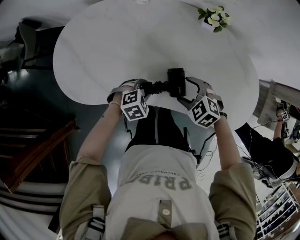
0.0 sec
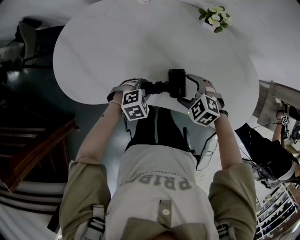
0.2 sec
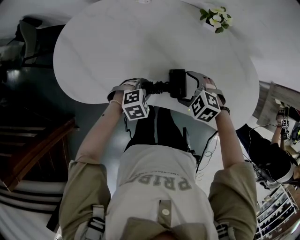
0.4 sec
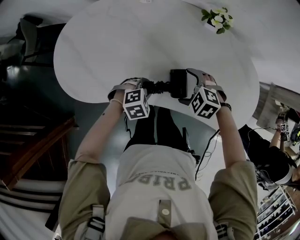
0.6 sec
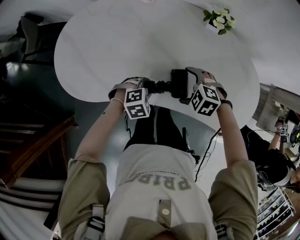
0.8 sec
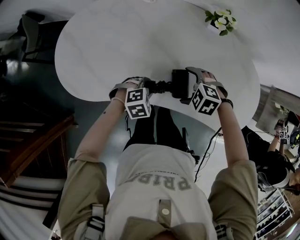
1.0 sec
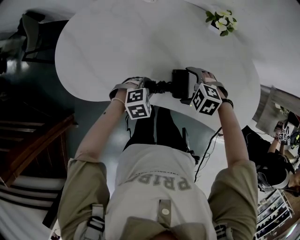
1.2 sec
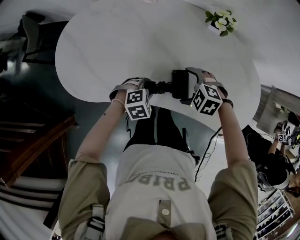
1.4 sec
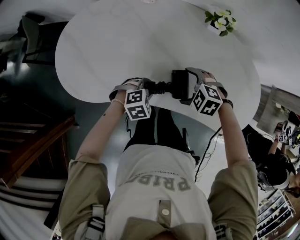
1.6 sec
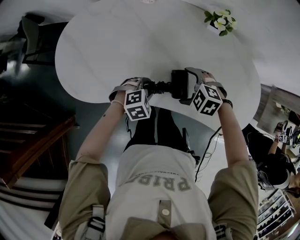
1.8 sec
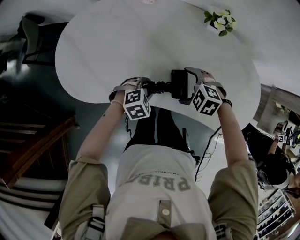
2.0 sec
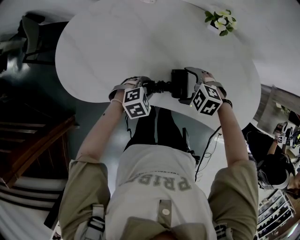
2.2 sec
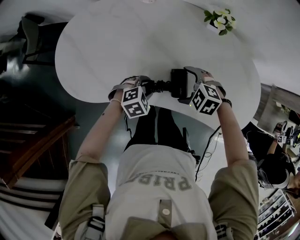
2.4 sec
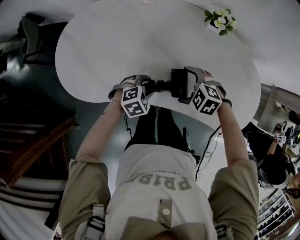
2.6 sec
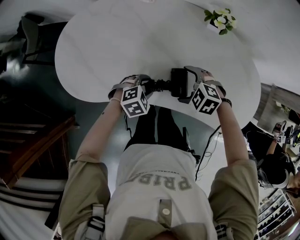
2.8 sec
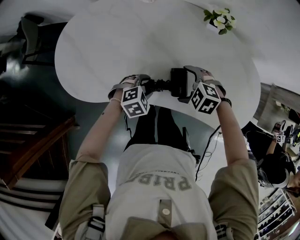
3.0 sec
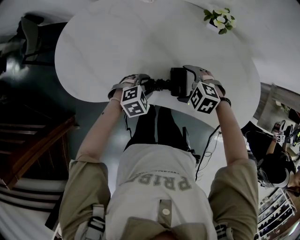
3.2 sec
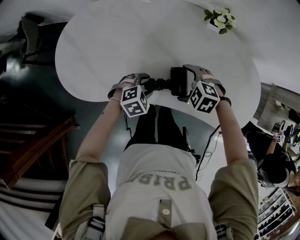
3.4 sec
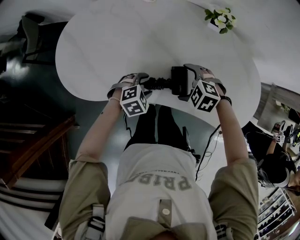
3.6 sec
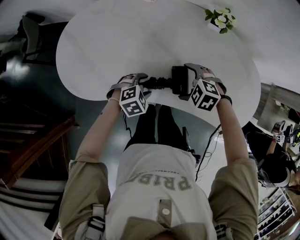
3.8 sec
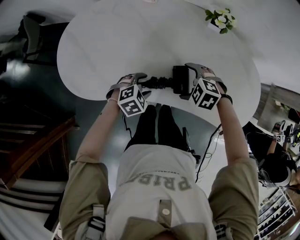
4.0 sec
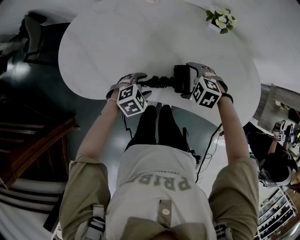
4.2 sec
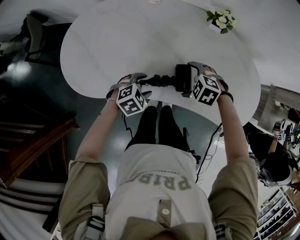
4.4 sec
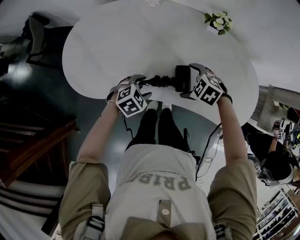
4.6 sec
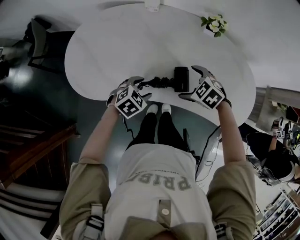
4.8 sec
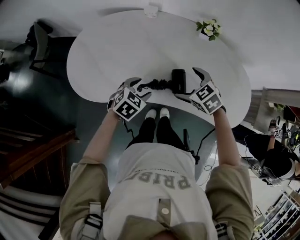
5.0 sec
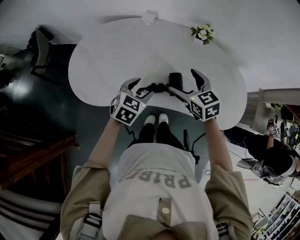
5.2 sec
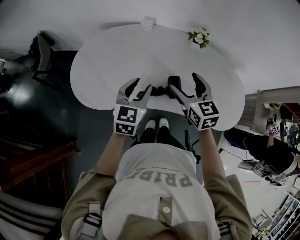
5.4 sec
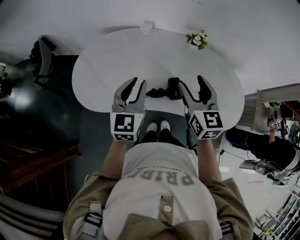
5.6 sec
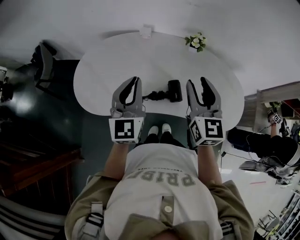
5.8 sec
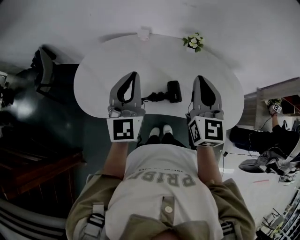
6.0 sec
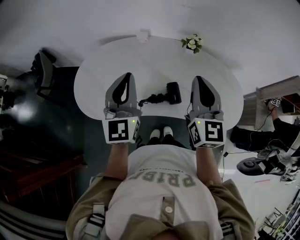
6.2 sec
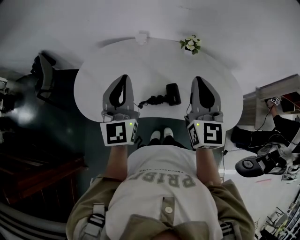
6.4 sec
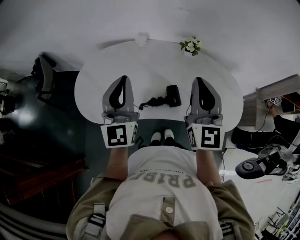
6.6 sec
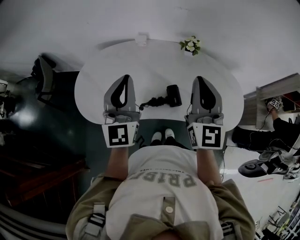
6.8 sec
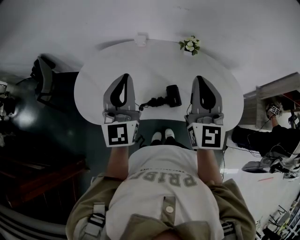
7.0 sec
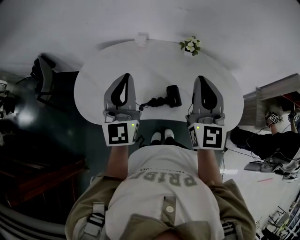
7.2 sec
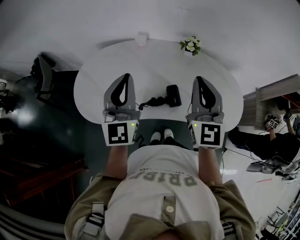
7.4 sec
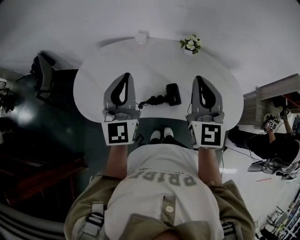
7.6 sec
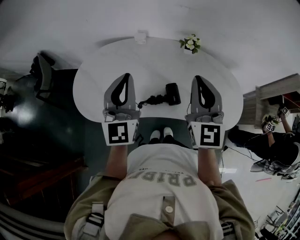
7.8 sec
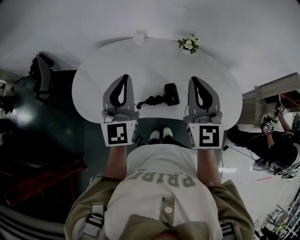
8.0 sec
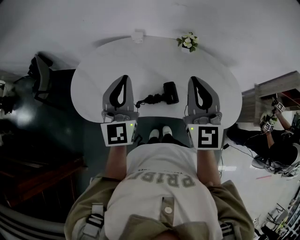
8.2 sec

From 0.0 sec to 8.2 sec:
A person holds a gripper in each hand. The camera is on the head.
From 0.0 sec to 1.6 sec: The right gripper opens its fingers.
From 1.6 sec to 3.2 sec: The grippers make only small movements.
From 3.2 sec to 5.0 sec: The two grippers go about 10 cm upward. The right gripper rotates roughly 30 degrees; the left gripper turns by roughly 30 degrees.
From 5.0 sec to 6.6 sec: Both grippers move upward, approximately 30 cm. The left gripper angles its fingers upward, by about 60 degrees, and closes up. The right gripper tips its fingers upward by roughly 60 degrees, and closes up.
From 6.6 sec to 8.2 sec: The grippers stay close to where they were, moving slightly.

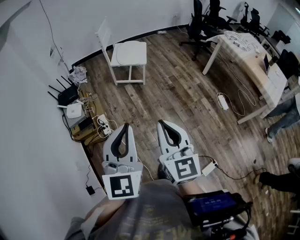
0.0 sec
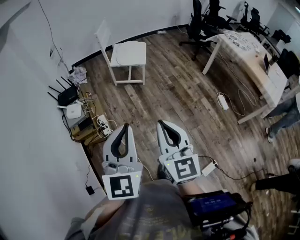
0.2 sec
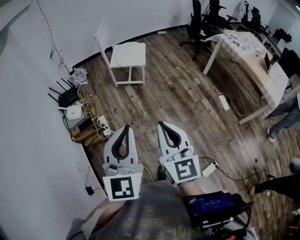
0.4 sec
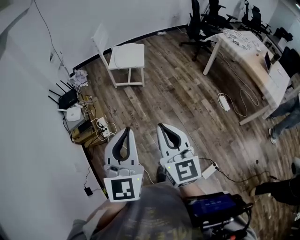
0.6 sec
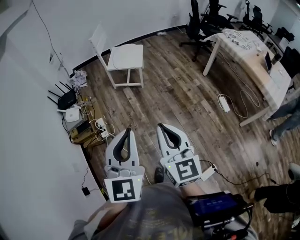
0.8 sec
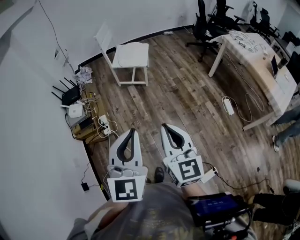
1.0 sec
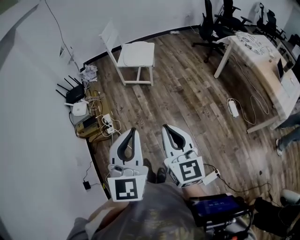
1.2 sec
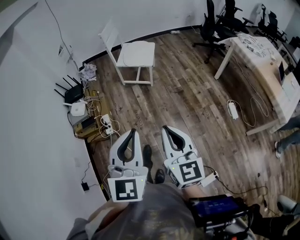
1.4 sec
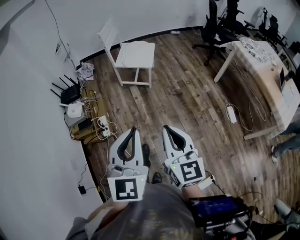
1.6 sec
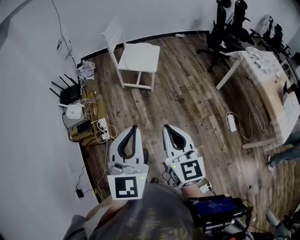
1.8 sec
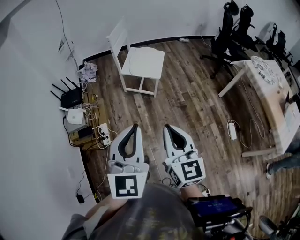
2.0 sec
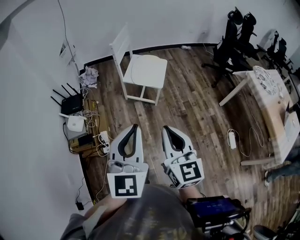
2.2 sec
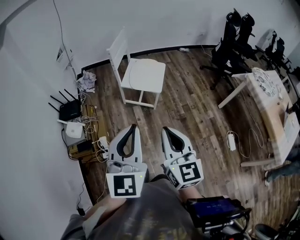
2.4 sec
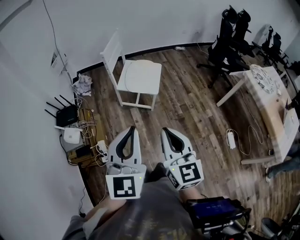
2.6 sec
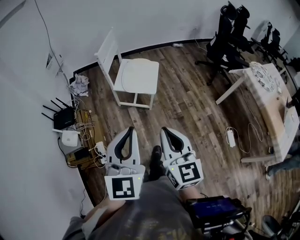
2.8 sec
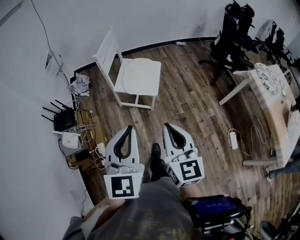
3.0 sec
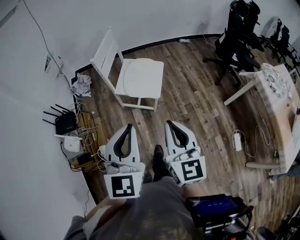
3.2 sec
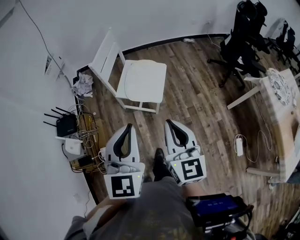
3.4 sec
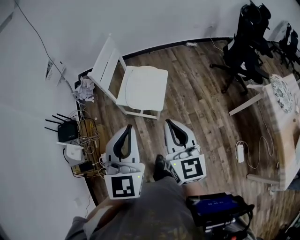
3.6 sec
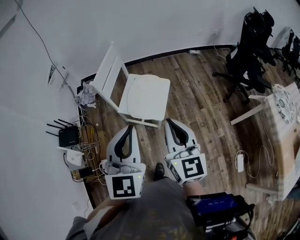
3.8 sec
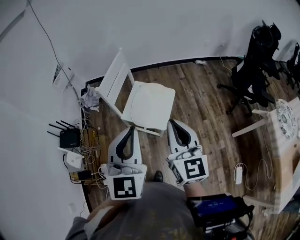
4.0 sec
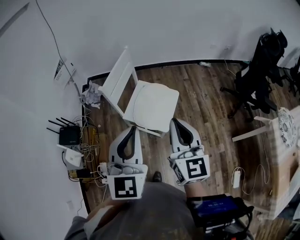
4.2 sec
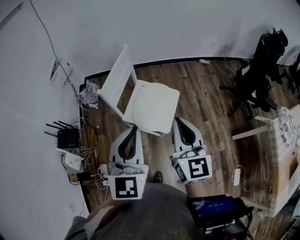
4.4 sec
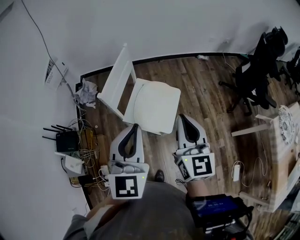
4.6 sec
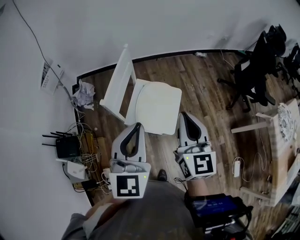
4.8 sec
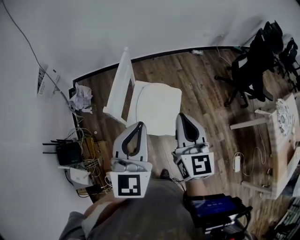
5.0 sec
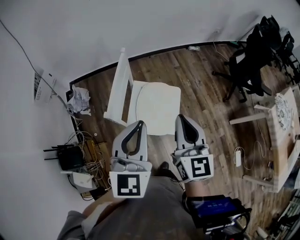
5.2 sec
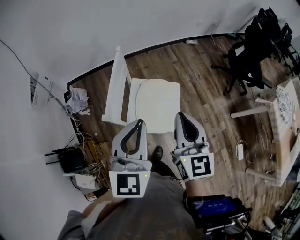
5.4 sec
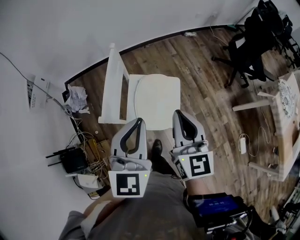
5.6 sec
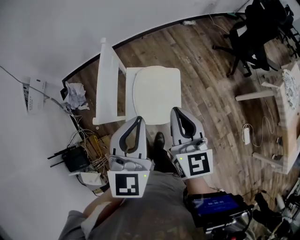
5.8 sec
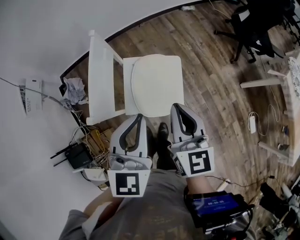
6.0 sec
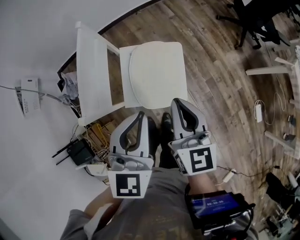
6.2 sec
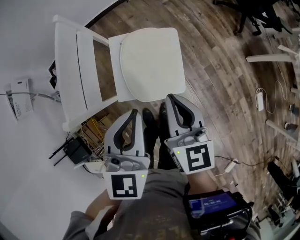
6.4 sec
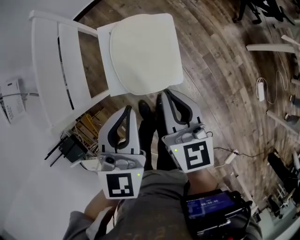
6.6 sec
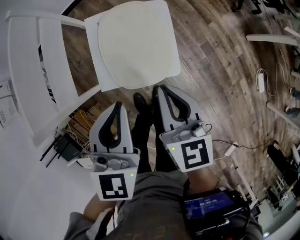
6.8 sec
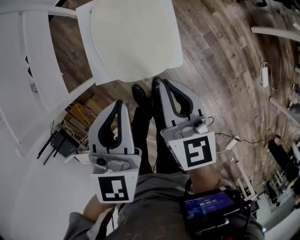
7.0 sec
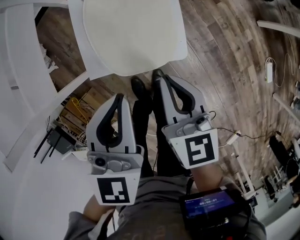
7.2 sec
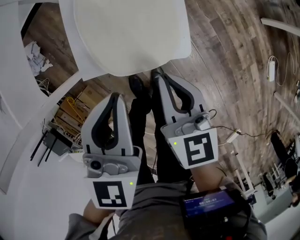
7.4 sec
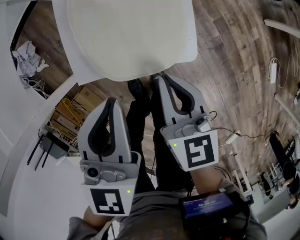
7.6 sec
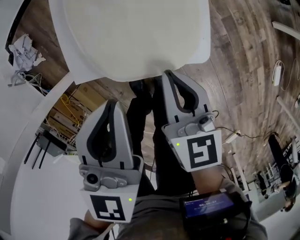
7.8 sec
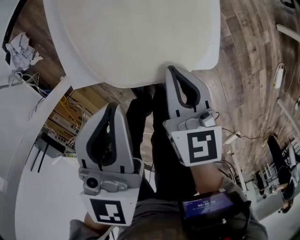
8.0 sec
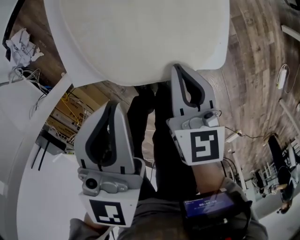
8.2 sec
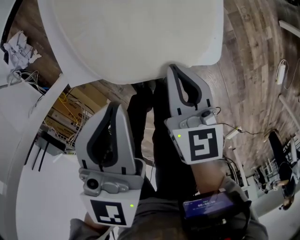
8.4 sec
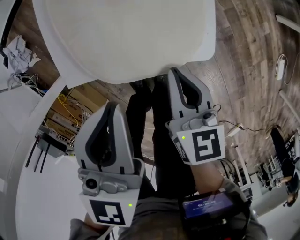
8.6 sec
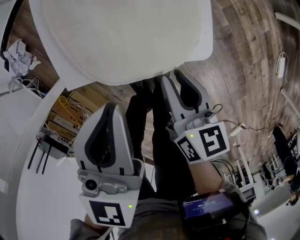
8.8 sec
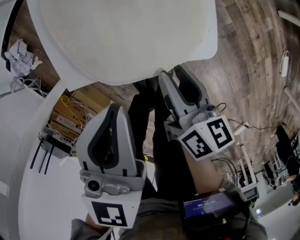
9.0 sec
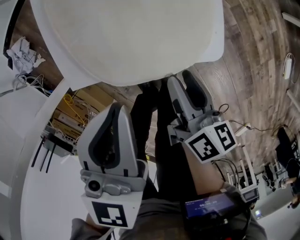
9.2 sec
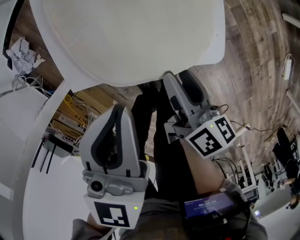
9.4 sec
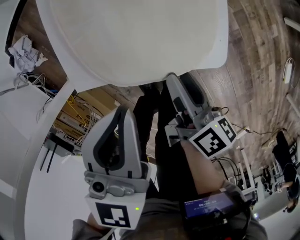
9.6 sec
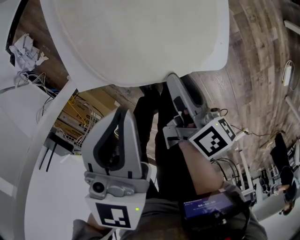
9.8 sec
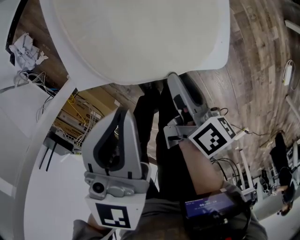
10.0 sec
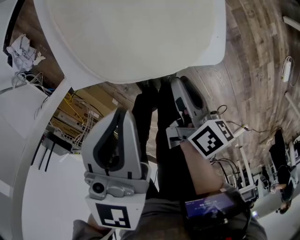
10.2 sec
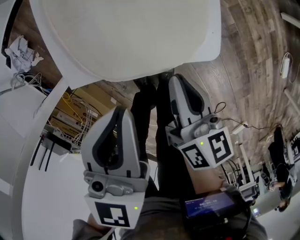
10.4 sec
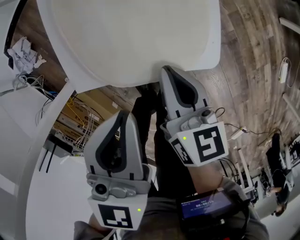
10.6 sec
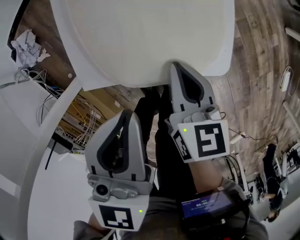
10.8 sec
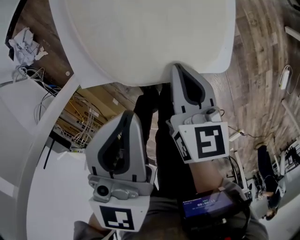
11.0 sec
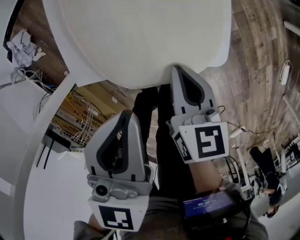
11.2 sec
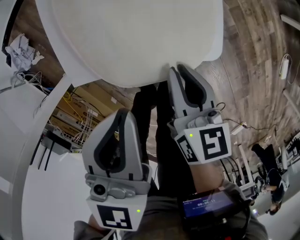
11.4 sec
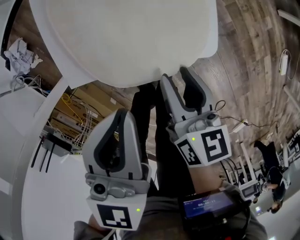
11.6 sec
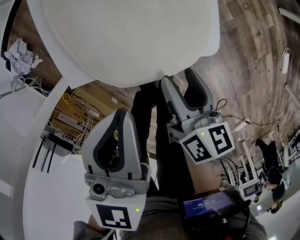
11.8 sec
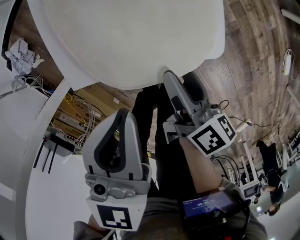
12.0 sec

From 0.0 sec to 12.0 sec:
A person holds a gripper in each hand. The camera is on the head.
From 0.0 sec to 1.6 sec: The grippers both shift to the right and forward by about 15 cm.
From 1.6 sec to 3.0 sec: The grippers both shift forward by approximately 35 cm.
From 3.0 sec to 4.4 sec: The grippers both shift forward by about 30 cm.
From 4.4 sec to 6.0 sec: The right gripper heads forward, downward and to the left, covering some 20 cm, and rotates roughly 20 degrees; the left gripper shifts roughly 20 cm forward and downward, and rotates approximately 30 degrees.
From 6.0 sec to 7.6 sec: Both grippers move downward, approximately 30 cm. The right gripper turns by about 20 degrees.
From 7.6 sec to 9.0 sec: The right gripper goes roughly 10 cm downward, rotates about 30 degrees, and opens; the left gripper ends up some 5 cm from where it was.
From 9.0 sec to 10.4 sec: The right gripper closes up.
From 10.4 sec to 12.0 sec: The right gripper opens up.

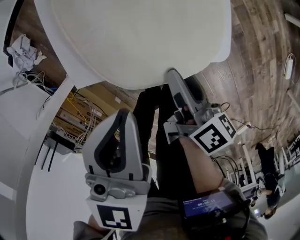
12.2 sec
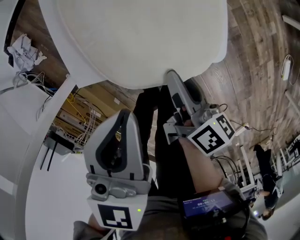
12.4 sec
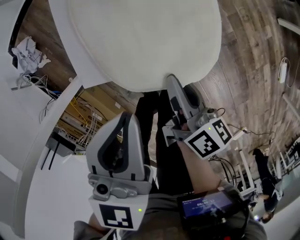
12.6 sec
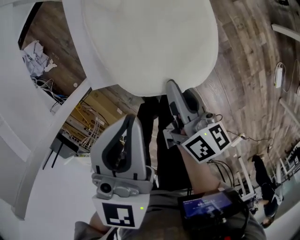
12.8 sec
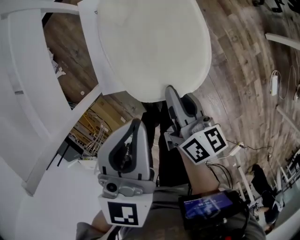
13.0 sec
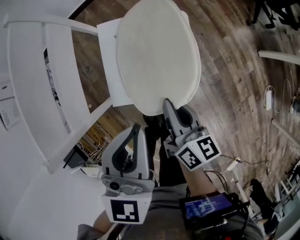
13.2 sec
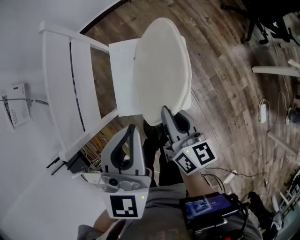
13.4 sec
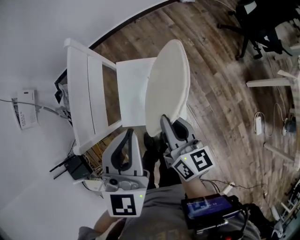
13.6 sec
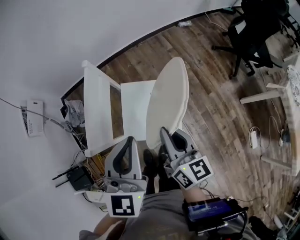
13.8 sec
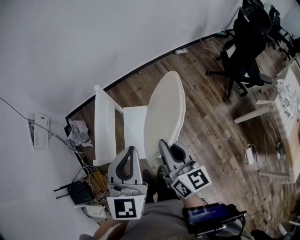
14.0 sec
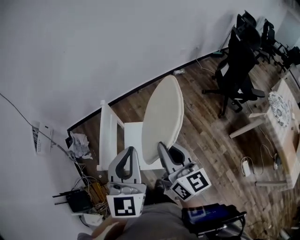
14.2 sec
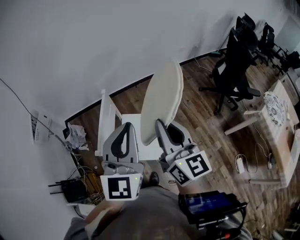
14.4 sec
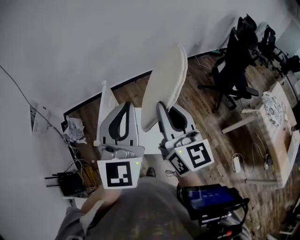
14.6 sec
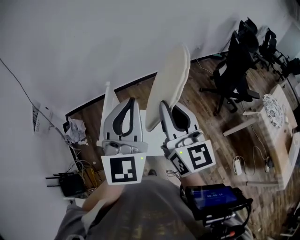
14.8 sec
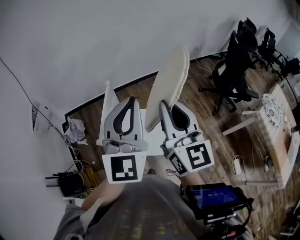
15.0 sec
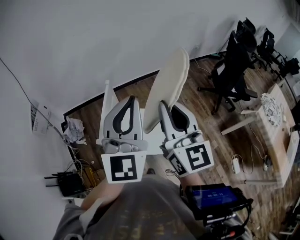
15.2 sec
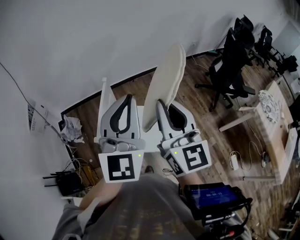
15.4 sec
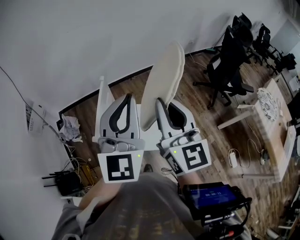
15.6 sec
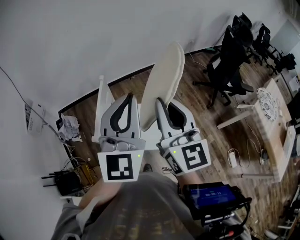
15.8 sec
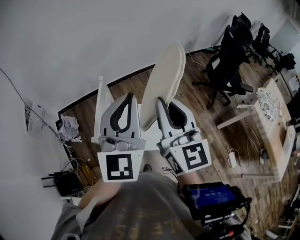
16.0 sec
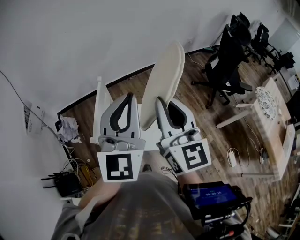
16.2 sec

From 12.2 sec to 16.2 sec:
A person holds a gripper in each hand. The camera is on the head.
From 12.2 sec to 13.6 sec: Both grippers move upward, about 30 cm. The left gripper rotates about 30 degrees. The right gripper swivels approximately 40 degrees, and closes.
From 13.6 sec to 14.8 sec: The grippers both shift upward by some 30 cm. The right gripper changes its angle by approximately 40 degrees; the left gripper turns by about 30 degrees.
From 14.8 sec to 16.2 sec: The grippers move only a little.
